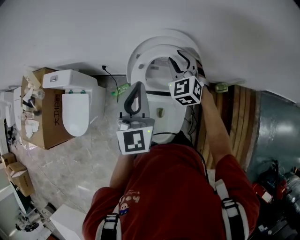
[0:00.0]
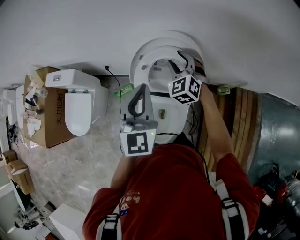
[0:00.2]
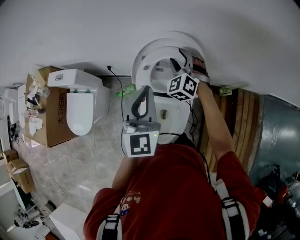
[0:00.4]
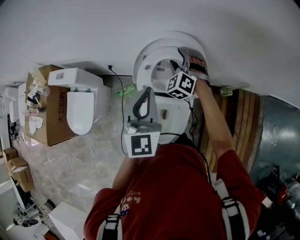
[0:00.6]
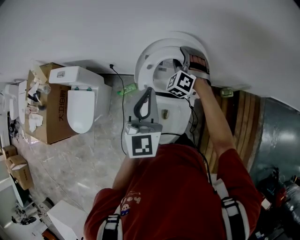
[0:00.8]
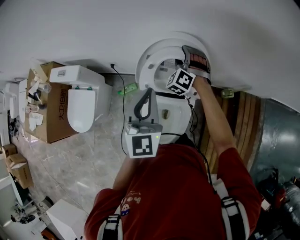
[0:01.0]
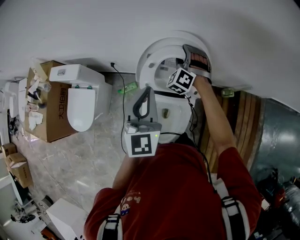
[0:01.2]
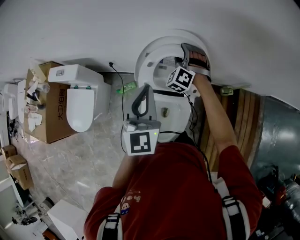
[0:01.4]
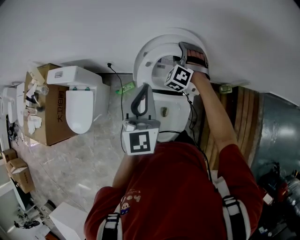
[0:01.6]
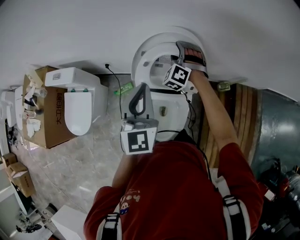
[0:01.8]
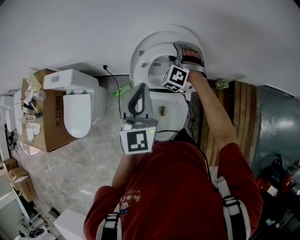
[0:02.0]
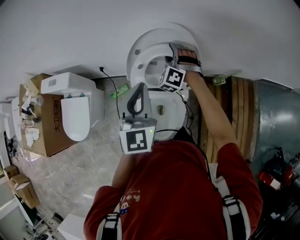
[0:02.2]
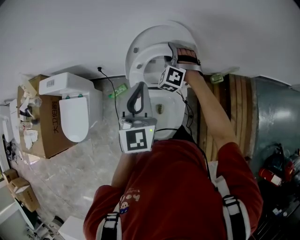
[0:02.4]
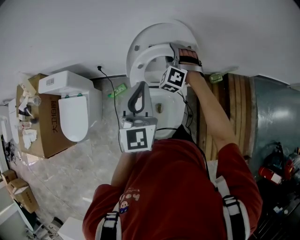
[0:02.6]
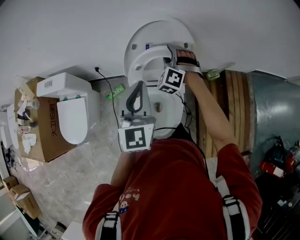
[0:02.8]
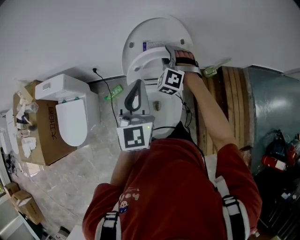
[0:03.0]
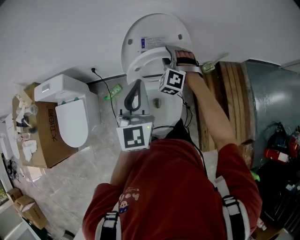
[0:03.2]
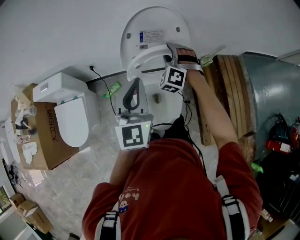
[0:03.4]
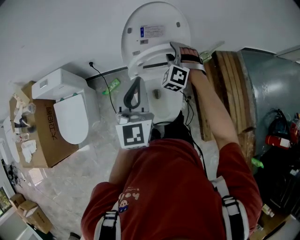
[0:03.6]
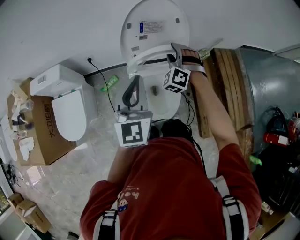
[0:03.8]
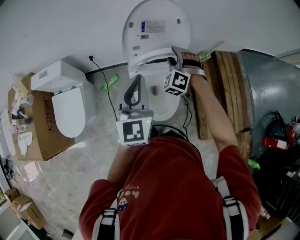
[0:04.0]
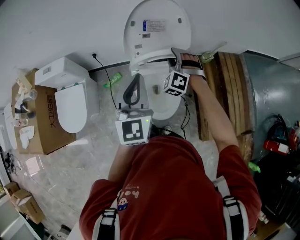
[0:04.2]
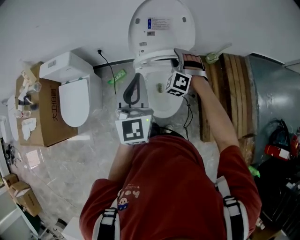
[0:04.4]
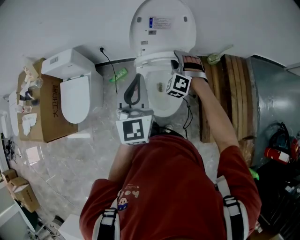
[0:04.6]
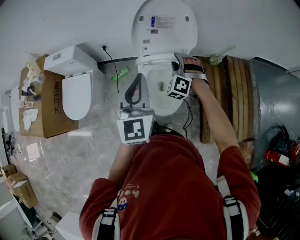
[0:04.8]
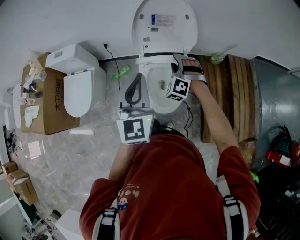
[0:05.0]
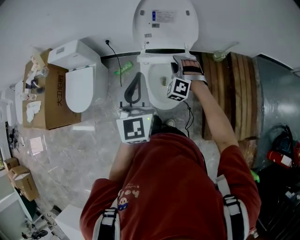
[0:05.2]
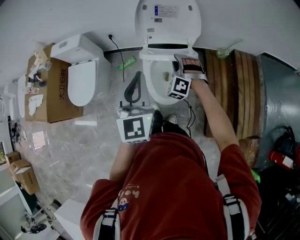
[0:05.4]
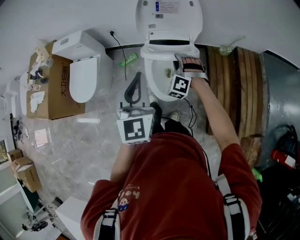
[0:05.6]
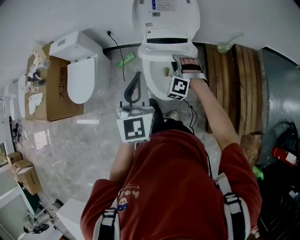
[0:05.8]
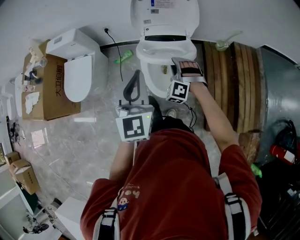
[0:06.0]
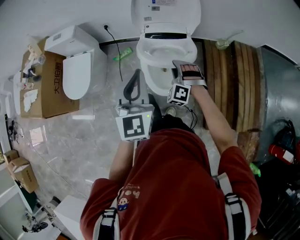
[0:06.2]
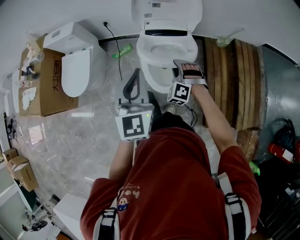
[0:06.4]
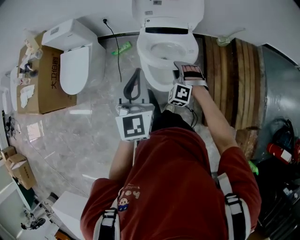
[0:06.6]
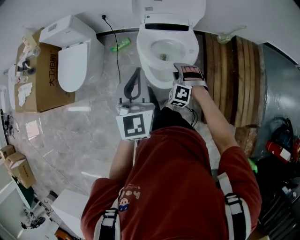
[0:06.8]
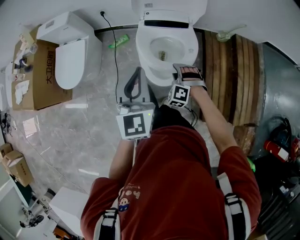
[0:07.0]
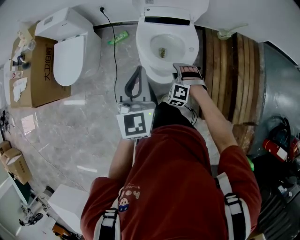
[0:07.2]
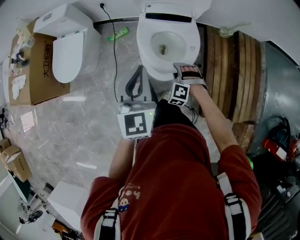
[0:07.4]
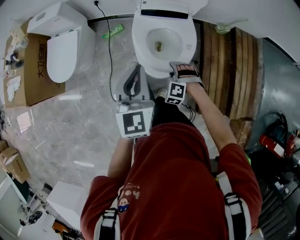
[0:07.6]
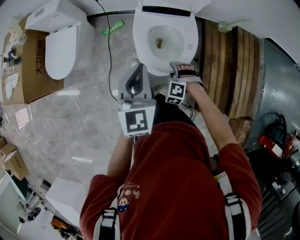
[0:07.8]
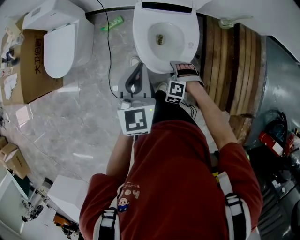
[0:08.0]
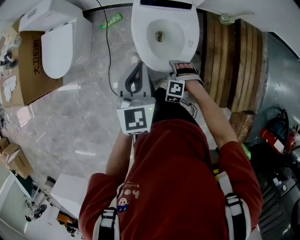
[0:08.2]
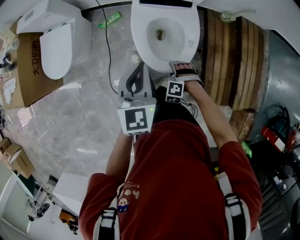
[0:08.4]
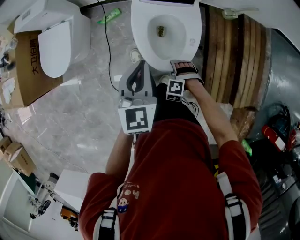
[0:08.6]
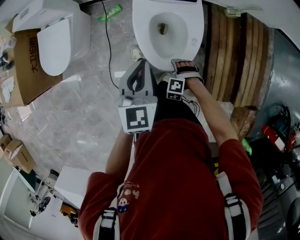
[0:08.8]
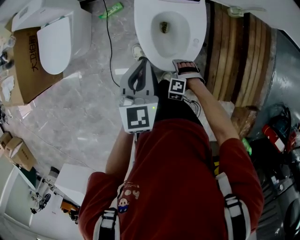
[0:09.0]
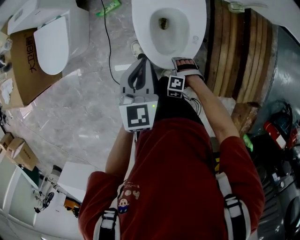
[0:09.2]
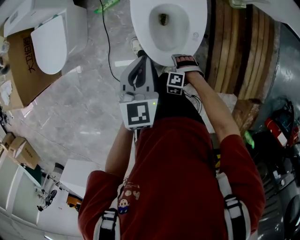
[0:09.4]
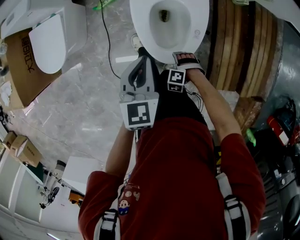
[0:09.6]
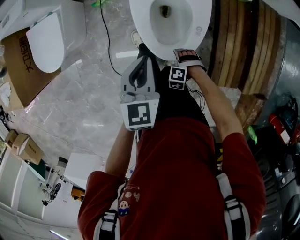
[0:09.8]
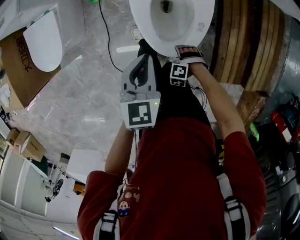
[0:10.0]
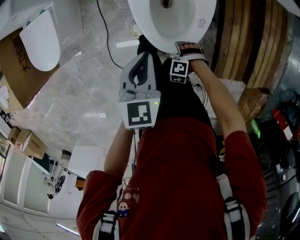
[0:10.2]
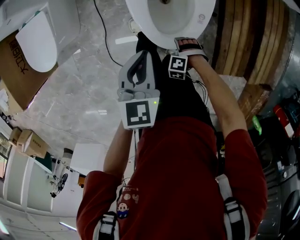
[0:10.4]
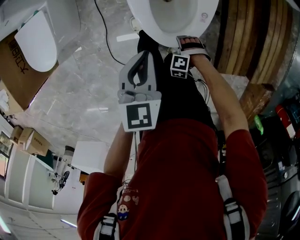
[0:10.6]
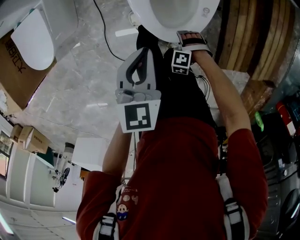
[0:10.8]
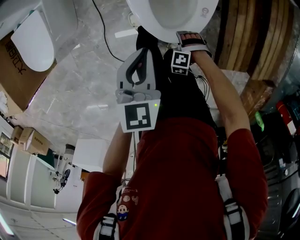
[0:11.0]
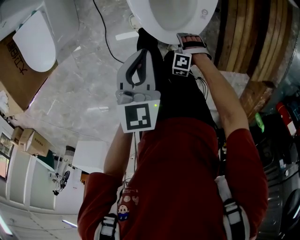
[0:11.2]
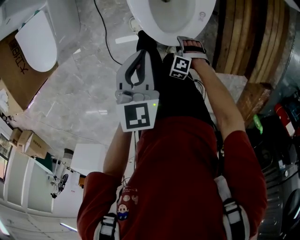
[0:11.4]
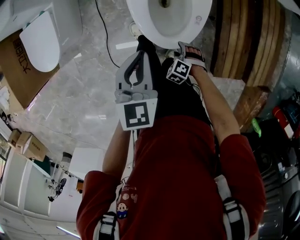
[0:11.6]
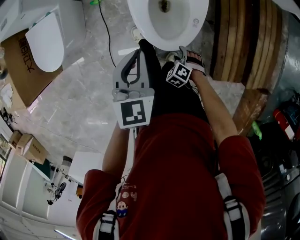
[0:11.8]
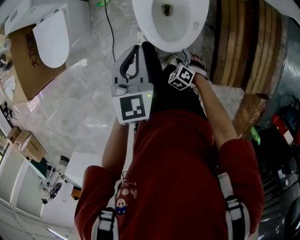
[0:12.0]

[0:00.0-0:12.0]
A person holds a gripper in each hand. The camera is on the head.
0:00.0 to 0:01.6: The right gripper moves downward, roughly 5 cm, changes its angle by roughly 30 degrees, and opens.
0:01.6 to 0:03.0: The left gripper is displaced backward by roughly 5 cm; the right gripper goes roughly 10 cm backward.
0:03.0 to 0:04.4: The two grippers go roughly 15 cm backward.
0:04.4 to 0:06.0: The right gripper goes roughly 20 cm backward and downward. Meanwhile the left gripper moves backward, about 10 cm.
0:06.0 to 0:07.6: The left gripper moves downward, about 10 cm; the right gripper goes approximately 20 cm downward and backward, and rotates about 20 degrees.
0:07.6 to 0:09.0: The two grippers go some 10 cm downward.
0:09.0 to 0:10.4: Both grippers travel together downward, about 10 cm.
0:10.4 to 0:12.0: The grippers both shift upward by approximately 10 cm. The right gripper turns by about 30 degrees.

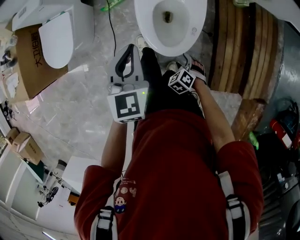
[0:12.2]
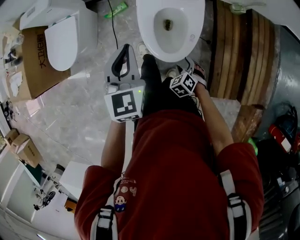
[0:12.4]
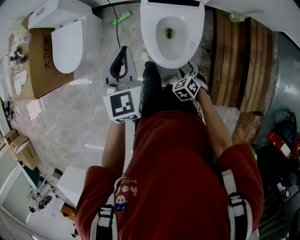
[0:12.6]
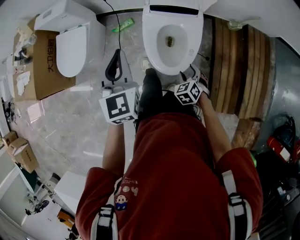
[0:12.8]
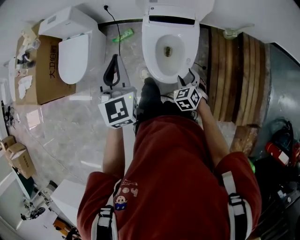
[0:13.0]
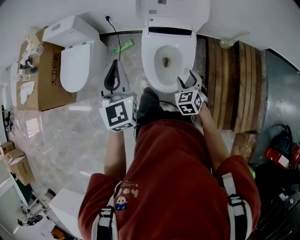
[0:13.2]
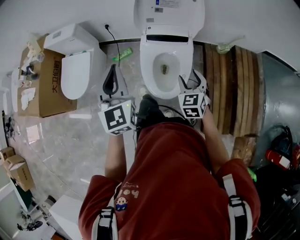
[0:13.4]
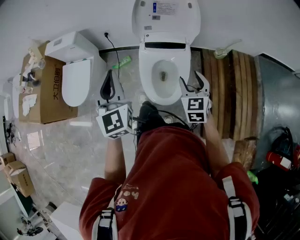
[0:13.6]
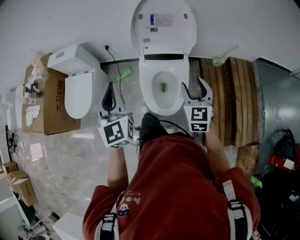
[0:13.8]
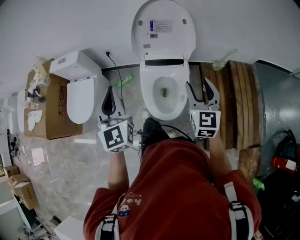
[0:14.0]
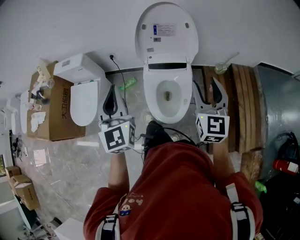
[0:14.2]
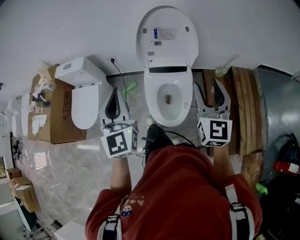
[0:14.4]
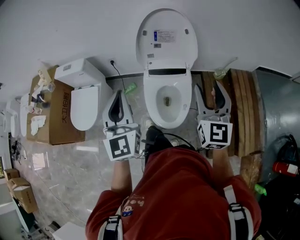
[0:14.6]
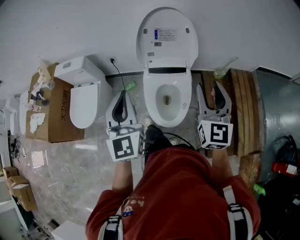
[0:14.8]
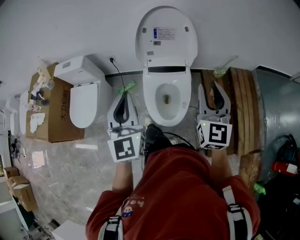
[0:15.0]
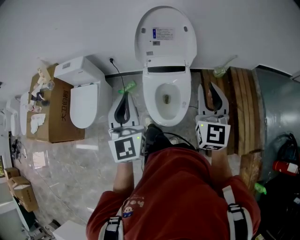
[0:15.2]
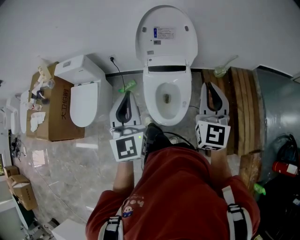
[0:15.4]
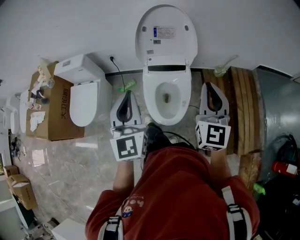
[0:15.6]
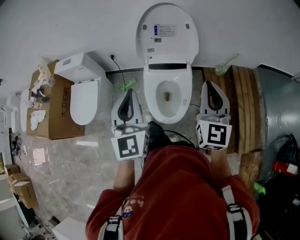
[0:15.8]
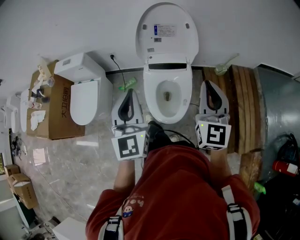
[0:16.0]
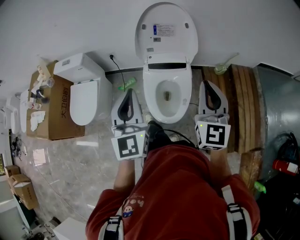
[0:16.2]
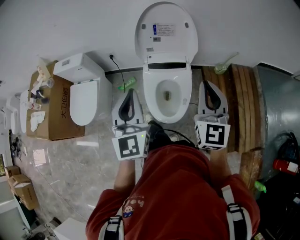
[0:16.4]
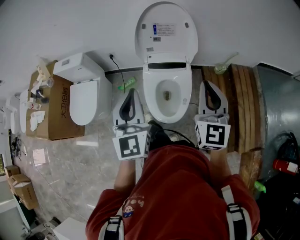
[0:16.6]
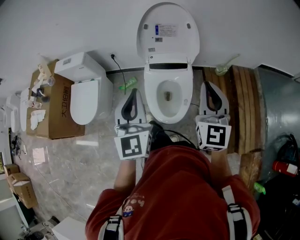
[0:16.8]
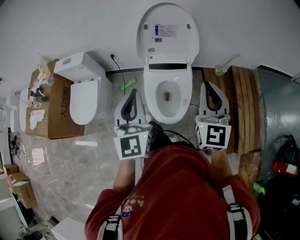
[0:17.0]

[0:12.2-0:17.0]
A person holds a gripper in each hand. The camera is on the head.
0:12.2 to 0:13.8: The left gripper goes some 20 cm upward, and turns by approximately 30 degrees; the right gripper shifts some 35 cm upward, and points its fingers roughly 50 degrees further upward.
0:13.8 to 0:15.4: The left gripper goes roughly 5 cm to the right. The right gripper goes approximately 15 cm upward, swivels roughly 20 degrees, and closes its fingers.
0:15.4 to 0:17.0: The grippers move only a little.

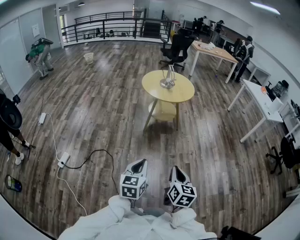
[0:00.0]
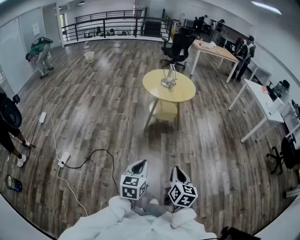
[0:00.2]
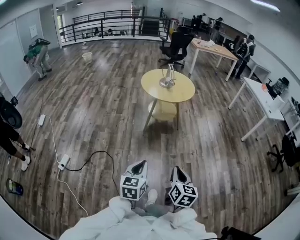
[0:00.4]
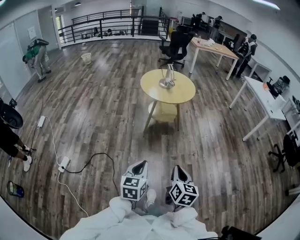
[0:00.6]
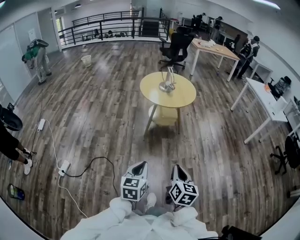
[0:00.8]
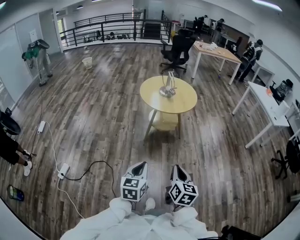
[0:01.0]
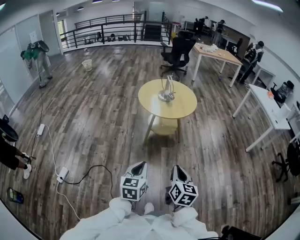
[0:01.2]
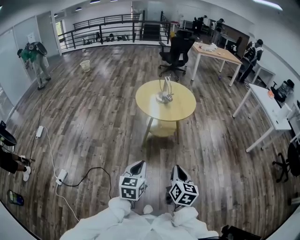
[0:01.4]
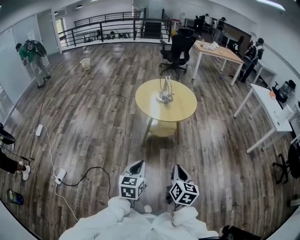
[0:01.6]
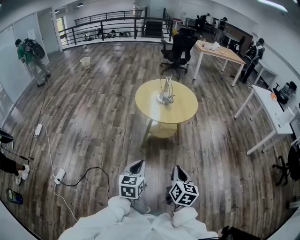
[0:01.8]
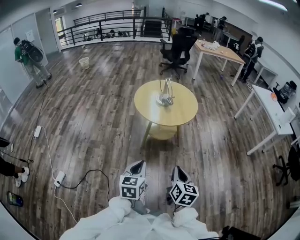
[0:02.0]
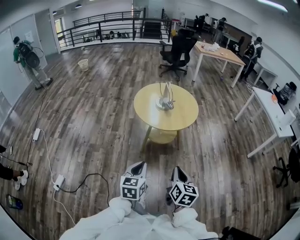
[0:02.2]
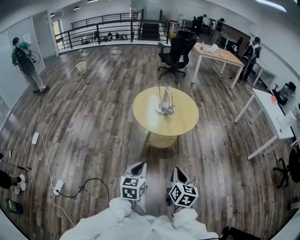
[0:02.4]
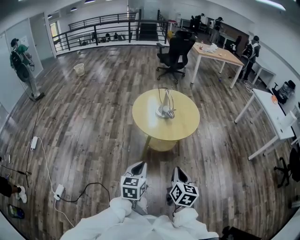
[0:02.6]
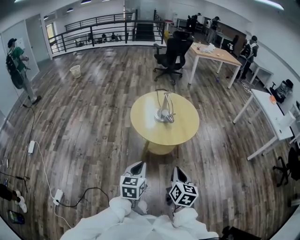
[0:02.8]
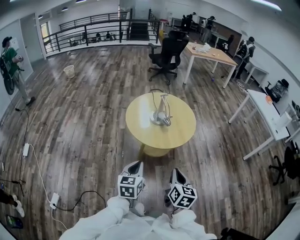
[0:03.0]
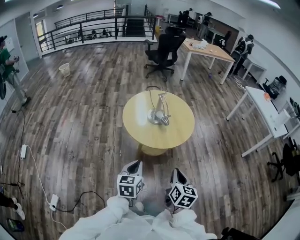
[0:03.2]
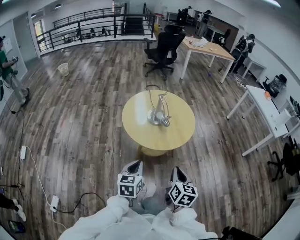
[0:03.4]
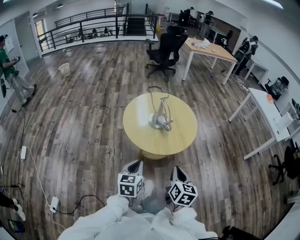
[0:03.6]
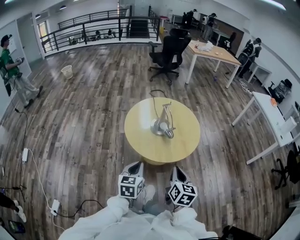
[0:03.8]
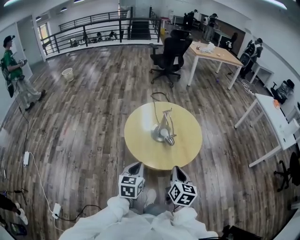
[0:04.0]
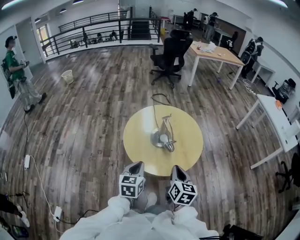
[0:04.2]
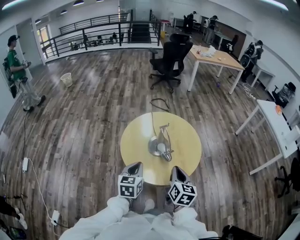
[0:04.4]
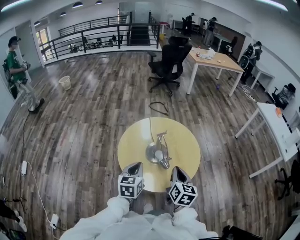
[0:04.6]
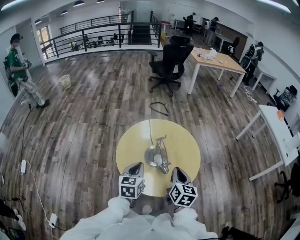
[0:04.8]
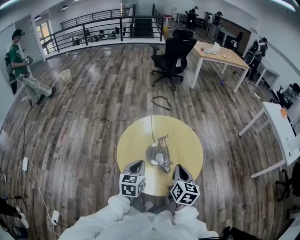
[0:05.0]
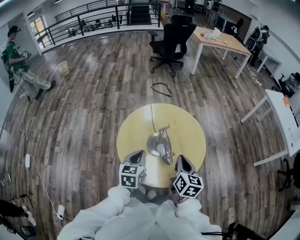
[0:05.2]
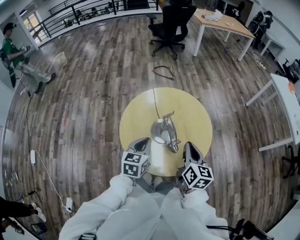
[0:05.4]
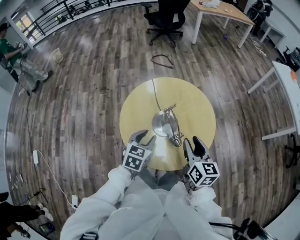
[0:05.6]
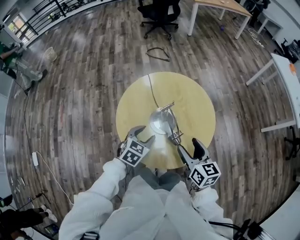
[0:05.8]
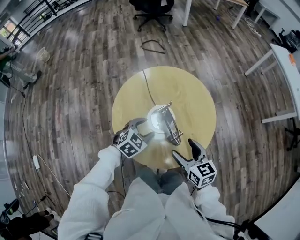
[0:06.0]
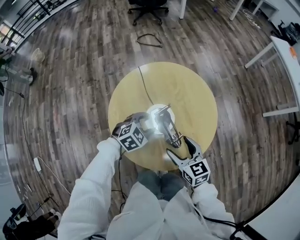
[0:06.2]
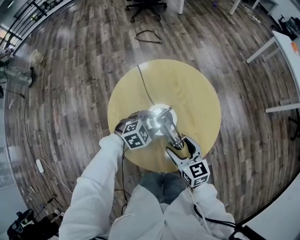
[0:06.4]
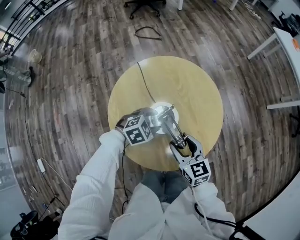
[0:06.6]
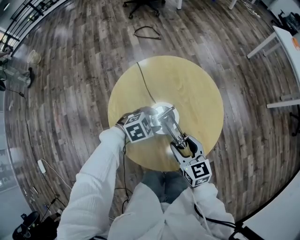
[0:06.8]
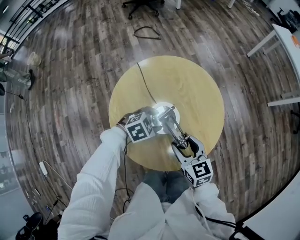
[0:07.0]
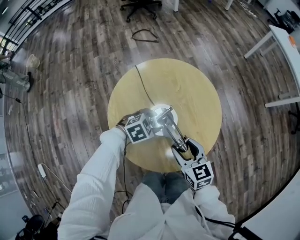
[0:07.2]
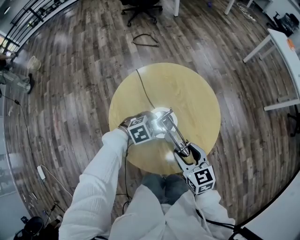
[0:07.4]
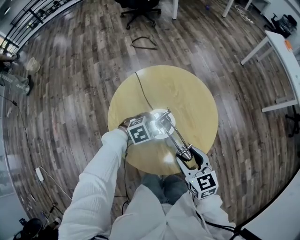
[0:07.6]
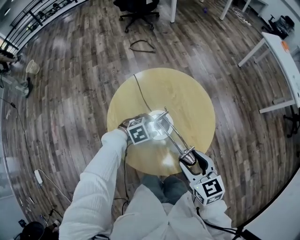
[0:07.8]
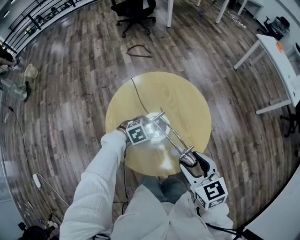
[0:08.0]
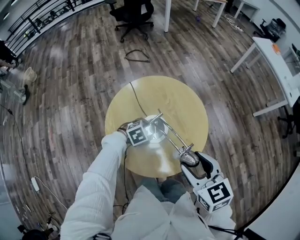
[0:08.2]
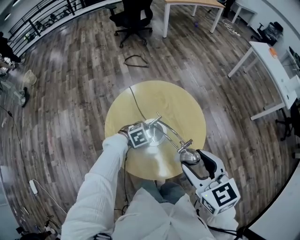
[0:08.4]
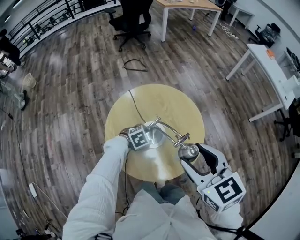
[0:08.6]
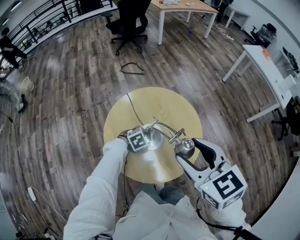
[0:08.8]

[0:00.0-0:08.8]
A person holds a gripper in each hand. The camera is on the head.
0:00.0 to 0:01.4: Both grippers move forward, some 25 cm.
0:01.4 to 0:03.0: Both grippers move forward, about 30 cm.
0:03.0 to 0:04.4: Both grippers travel together forward, roughly 30 cm.
0:04.4 to 0:05.8: The right gripper heads forward and downward, covering about 10 cm, and opens up. The left gripper travels forward and downward by about 20 cm, turns by approximately 40 degrees, and opens its fingers.
0:05.8 to 0:07.4: The right gripper travels downward by roughly 5 cm. The left gripper moves forward and downward, some 15 cm, and rotates about 40 degrees.
0:07.4 to 0:08.8: The right gripper goes approximately 25 cm upward.
